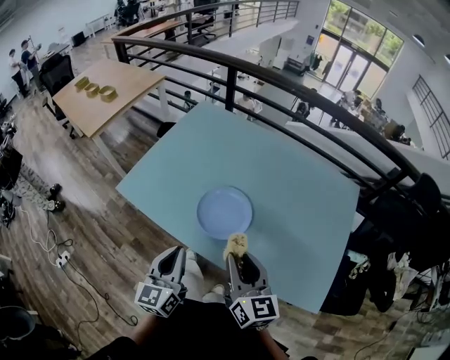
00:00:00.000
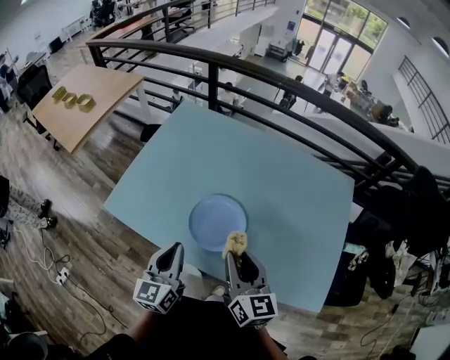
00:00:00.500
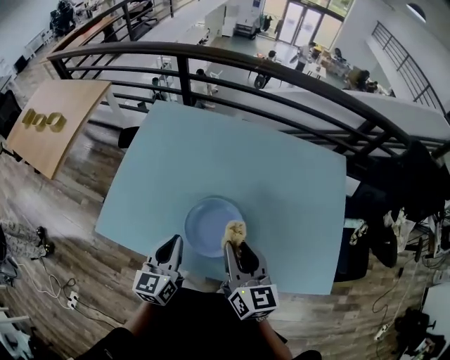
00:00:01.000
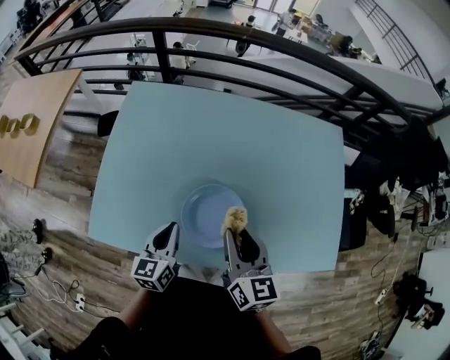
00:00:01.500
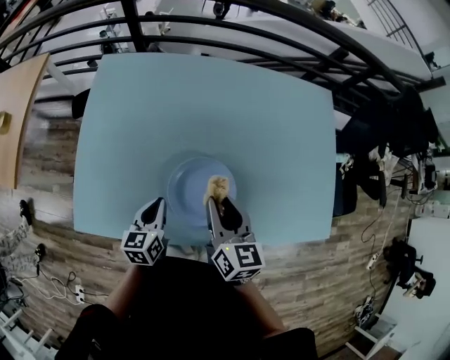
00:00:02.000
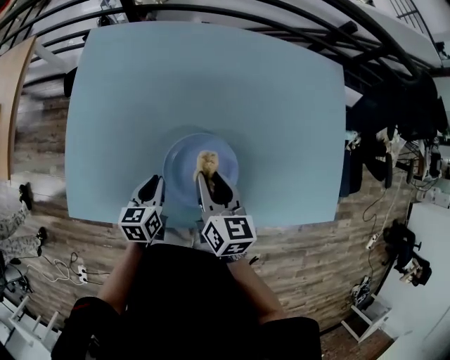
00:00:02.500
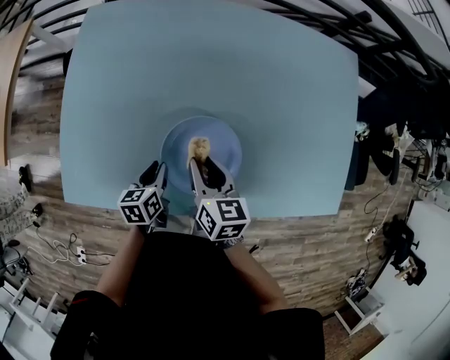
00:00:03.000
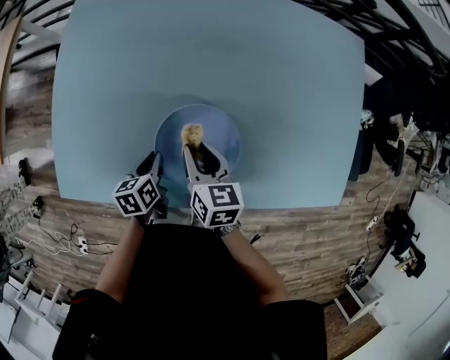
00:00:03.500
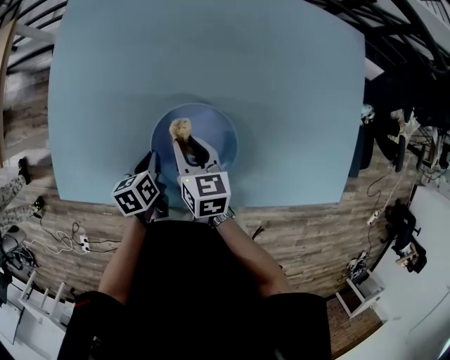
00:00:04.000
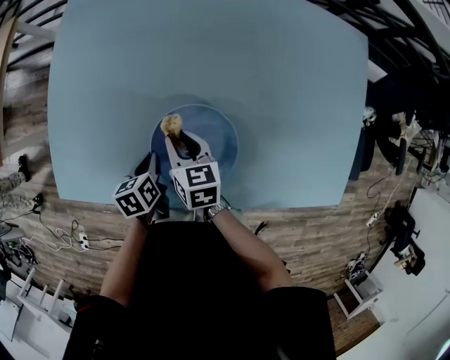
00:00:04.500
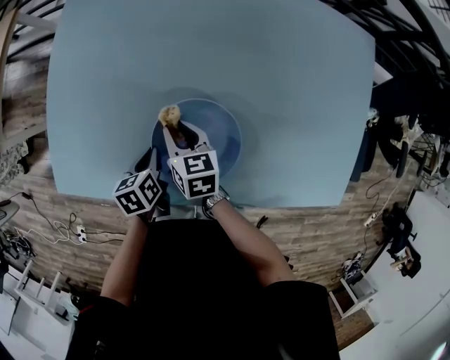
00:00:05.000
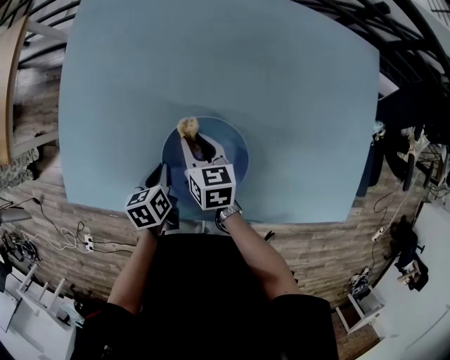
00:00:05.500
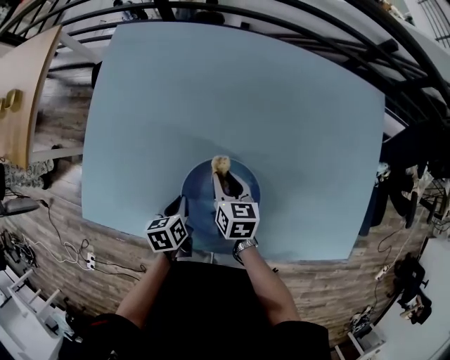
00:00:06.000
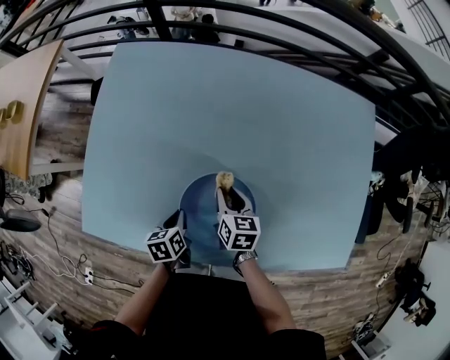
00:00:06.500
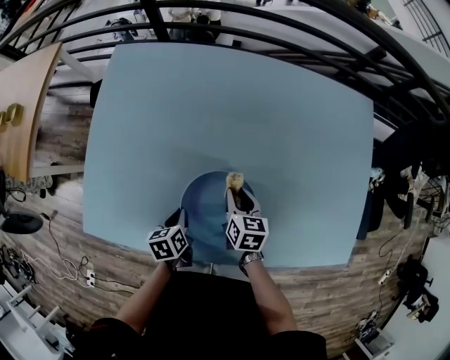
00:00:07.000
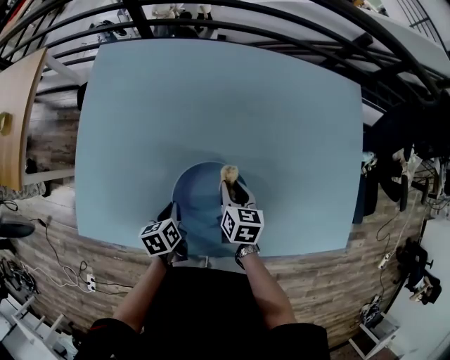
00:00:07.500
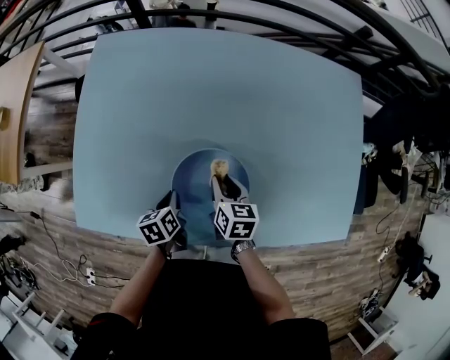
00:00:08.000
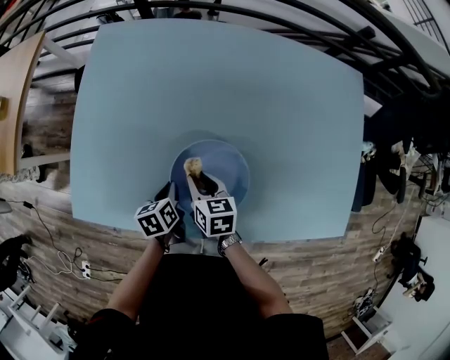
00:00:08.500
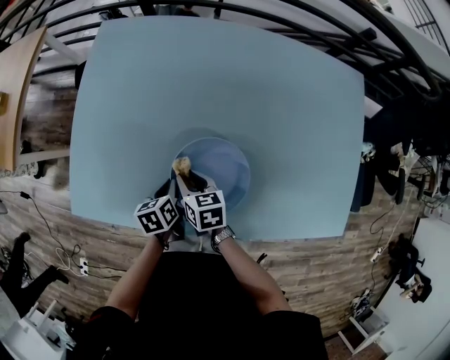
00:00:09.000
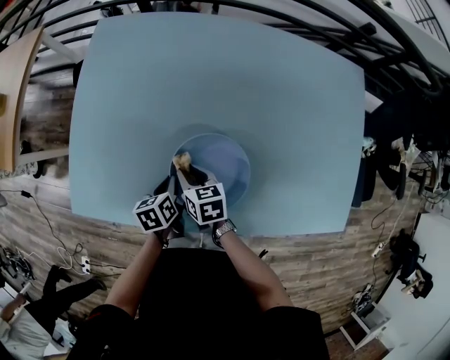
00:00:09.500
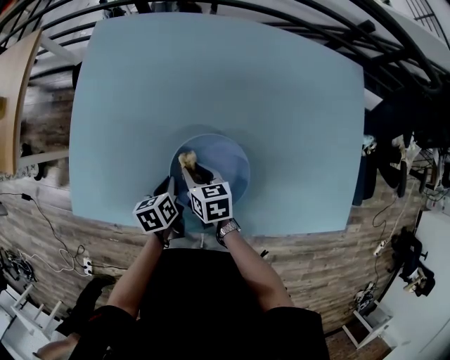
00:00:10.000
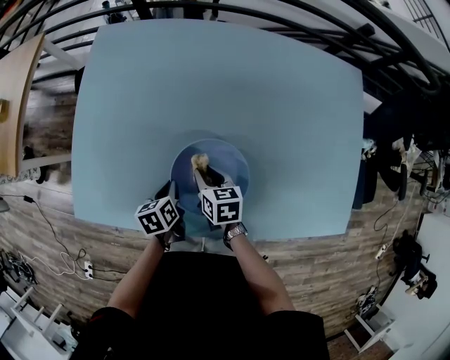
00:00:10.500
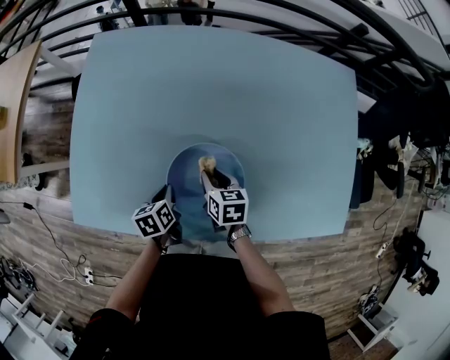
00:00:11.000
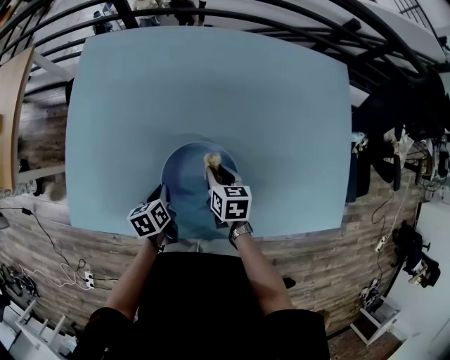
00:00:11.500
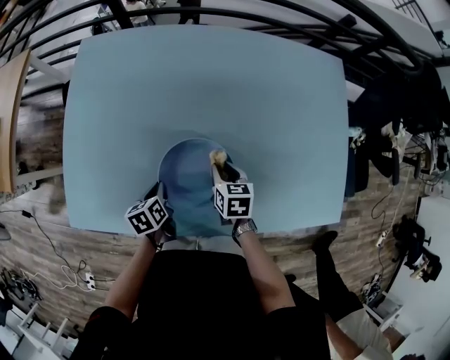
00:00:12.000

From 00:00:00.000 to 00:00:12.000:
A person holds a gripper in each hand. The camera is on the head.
From 00:00:00.000 to 00:00:02.000: The right gripper ends up some 25 cm from where it was, and turns by about 30 degrees, while the left gripper moves approximately 30 cm, and turns by approximately 40 degrees.
From 00:00:02.000 to 00:00:04.000: Both grippers travel together downward, about 15 cm. The right gripper changes its angle by approximately 20 degrees, while the left gripper changes its angle by approximately 30 degrees.
From 00:00:04.000 to 00:00:06.000: The right gripper moves roughly 5 cm.
From 00:00:06.000 to 00:00:08.000: The right gripper ends up approximately 5 cm from where it was.
From 00:00:08.000 to 00:00:10.000: The right gripper shifts approximately 10 cm to the left.
From 00:00:10.000 to 00:00:12.000: The right gripper moves to the right, roughly 15 cm.

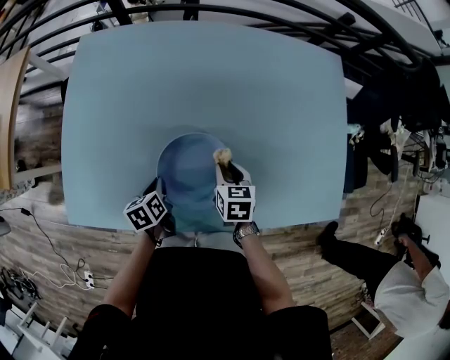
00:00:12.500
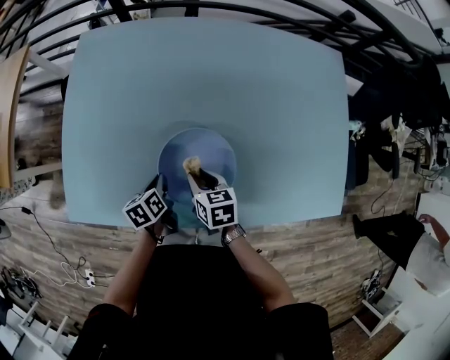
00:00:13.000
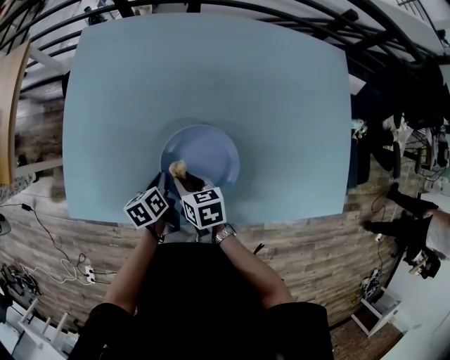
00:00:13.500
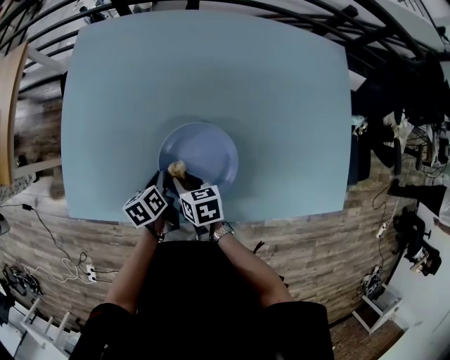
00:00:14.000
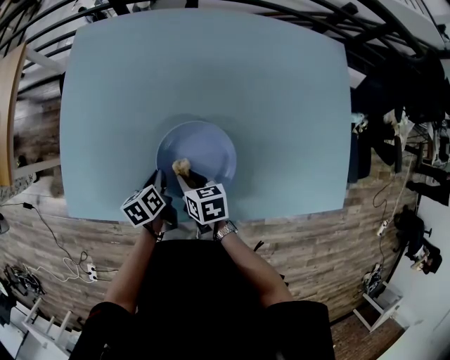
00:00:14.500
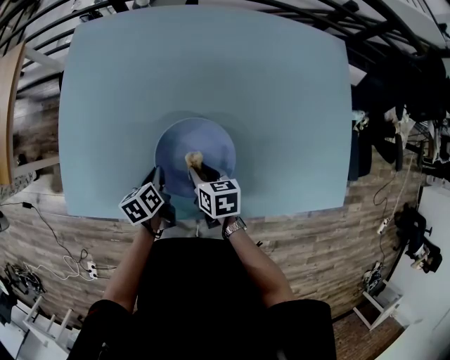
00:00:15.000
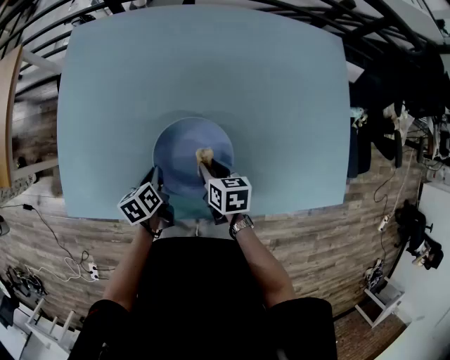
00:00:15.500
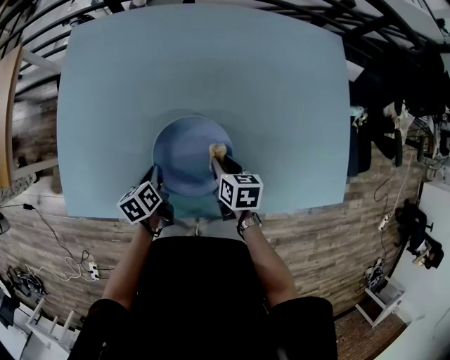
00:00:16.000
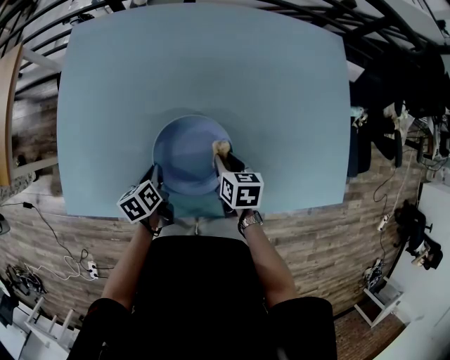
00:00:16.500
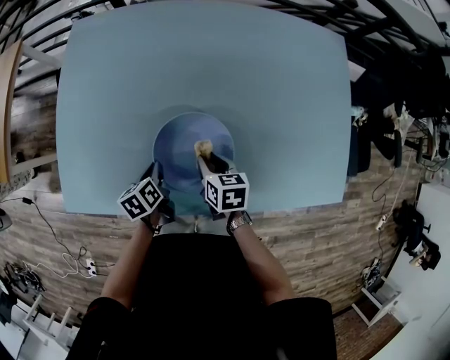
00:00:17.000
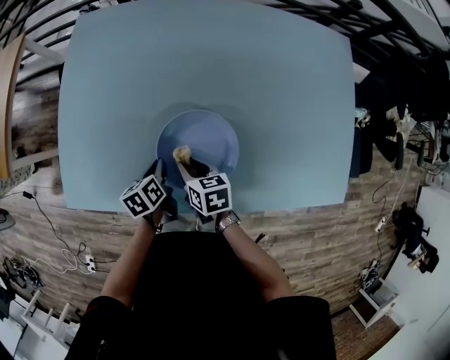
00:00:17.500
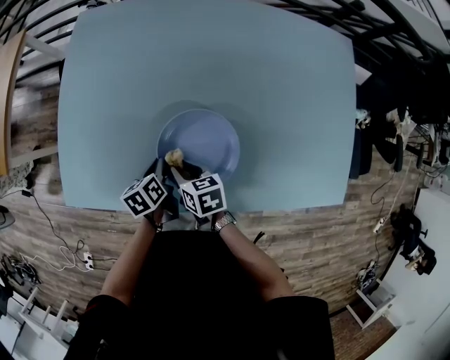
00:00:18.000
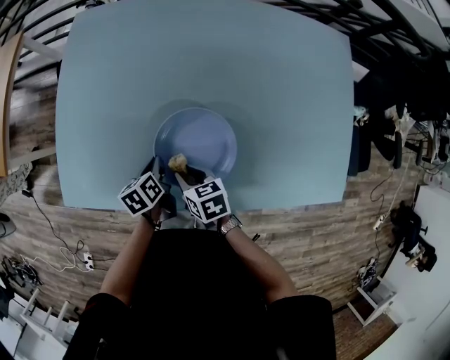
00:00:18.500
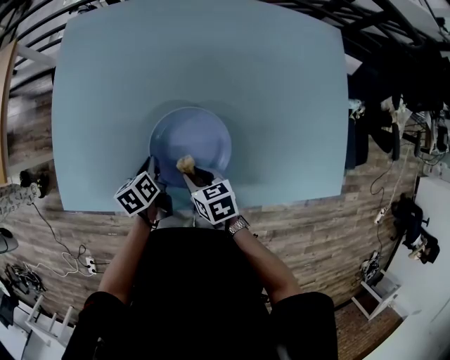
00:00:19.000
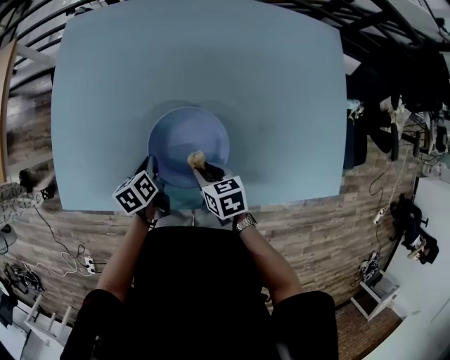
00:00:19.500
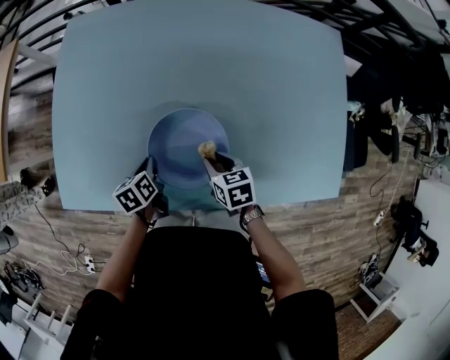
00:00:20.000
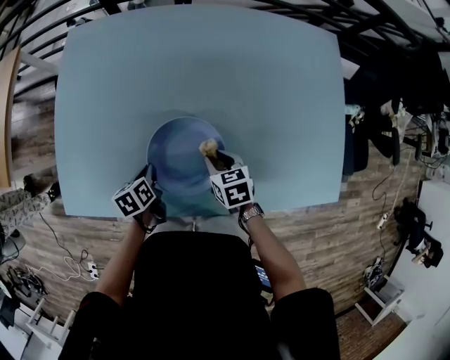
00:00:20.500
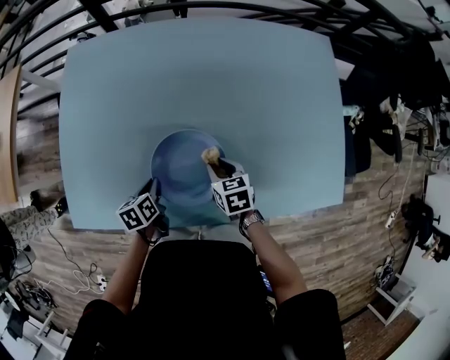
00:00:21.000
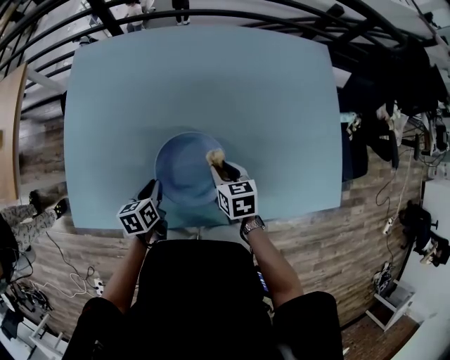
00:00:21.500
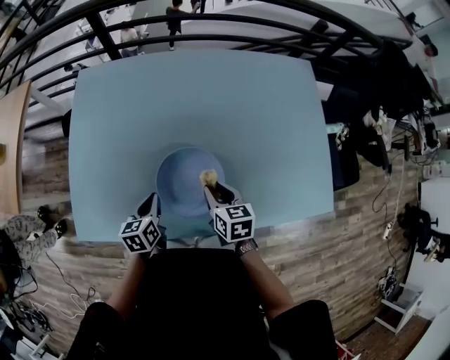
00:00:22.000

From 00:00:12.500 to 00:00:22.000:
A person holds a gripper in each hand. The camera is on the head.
From 00:00:12.500 to 00:00:14.500: The right gripper shifts about 15 cm to the left, and turns by approximately 20 degrees.
From 00:00:14.500 to 00:00:16.500: The right gripper moves to the right, about 15 cm.
From 00:00:16.500 to 00:00:18.000: The right gripper travels to the left by some 15 cm, and turns by about 20 degrees.
From 00:00:18.000 to 00:00:20.000: The right gripper moves to the right, approximately 15 cm.
From 00:00:20.000 to 00:00:22.000: Both grippers move upward, some 10 cm. The left gripper swivels roughly 20 degrees. The right gripper swivels roughly 20 degrees.

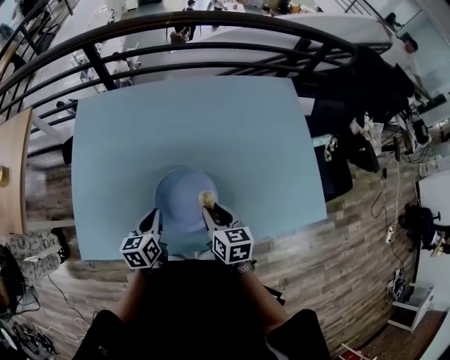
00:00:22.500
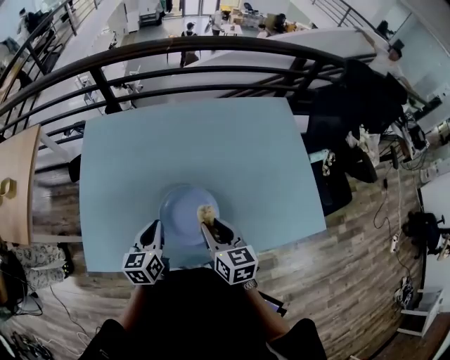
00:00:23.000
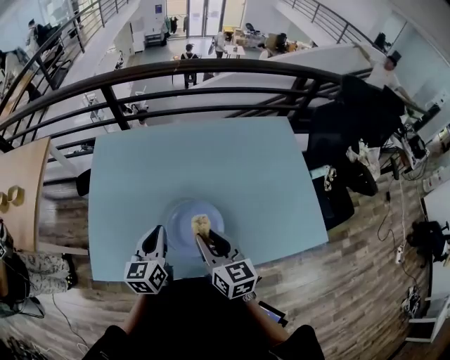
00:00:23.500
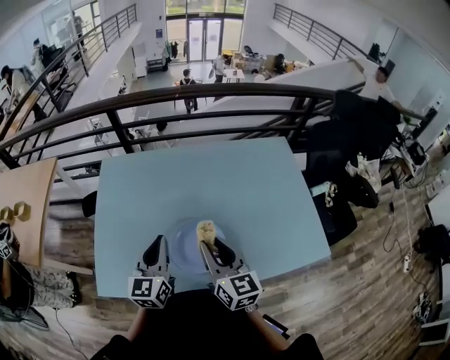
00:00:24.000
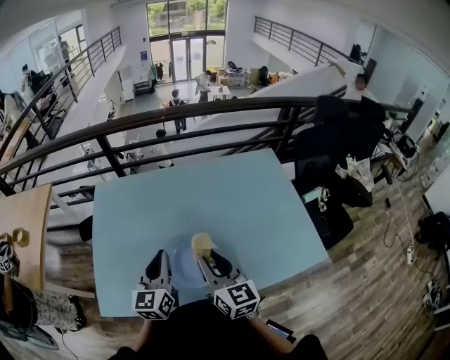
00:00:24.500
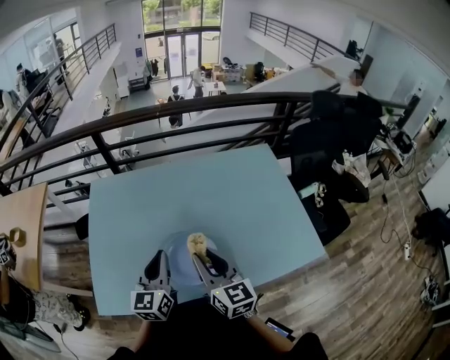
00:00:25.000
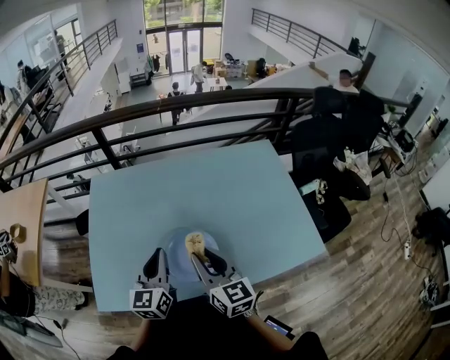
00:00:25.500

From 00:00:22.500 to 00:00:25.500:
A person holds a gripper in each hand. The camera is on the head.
From 00:00:22.500 to 00:00:24.000: Both grippers move upward, about 20 cm. The left gripper turns by about 30 degrees. Meanwhile the right gripper turns by some 30 degrees.
From 00:00:24.000 to 00:00:25.500: The grippers stay close to where they were, moving slightly.

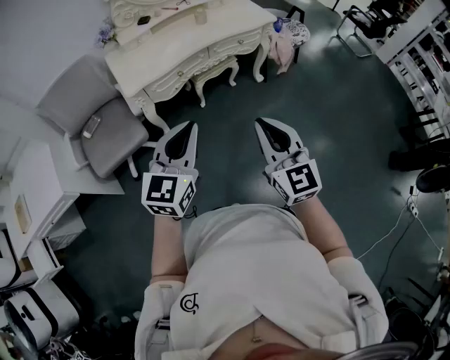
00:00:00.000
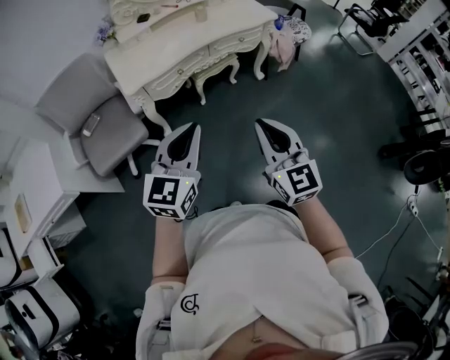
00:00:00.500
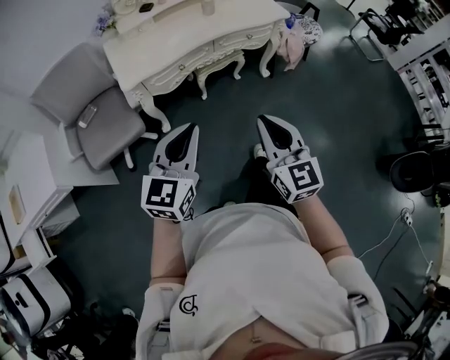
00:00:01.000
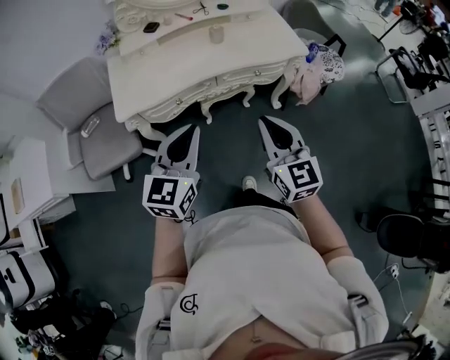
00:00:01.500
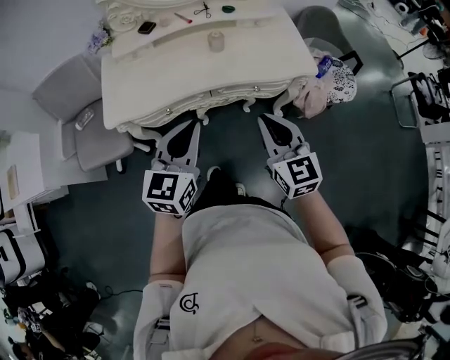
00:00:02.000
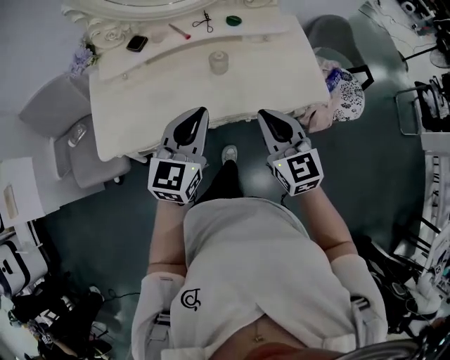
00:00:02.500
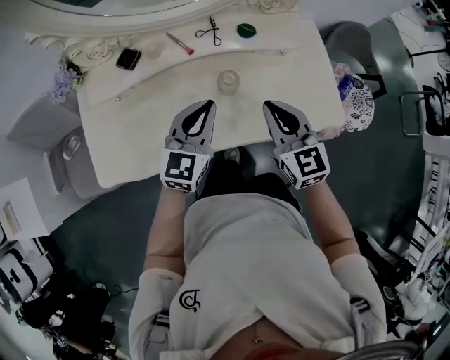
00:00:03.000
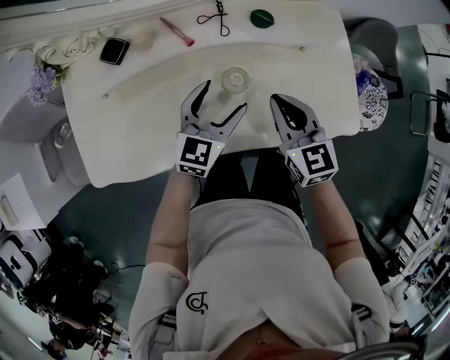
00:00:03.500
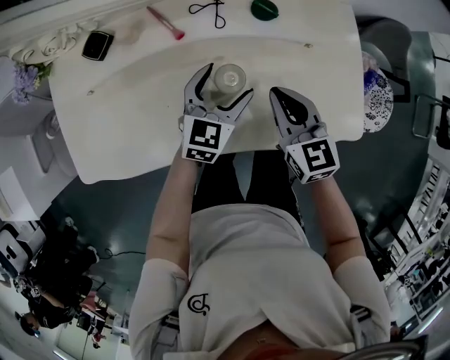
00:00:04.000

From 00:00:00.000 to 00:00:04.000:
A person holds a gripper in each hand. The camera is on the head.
From 00:00:00.000 to 00:00:02.000: The right gripper travels forward by roughly 40 cm, and changes its angle by about 20 degrees. Meanwhile the left gripper travels forward and to the right by approximately 40 cm, and changes its angle by roughly 20 degrees.
From 00:00:02.000 to 00:00:04.000: Both grippers move forward and downward, approximately 50 cm. The left gripper opens.
